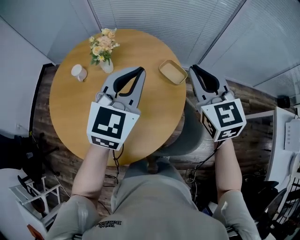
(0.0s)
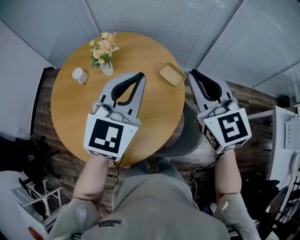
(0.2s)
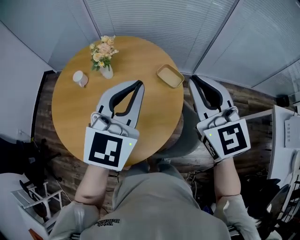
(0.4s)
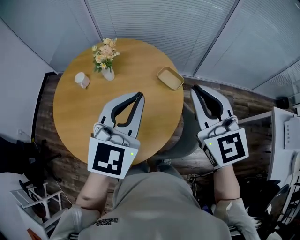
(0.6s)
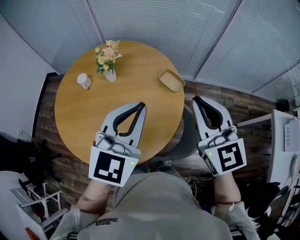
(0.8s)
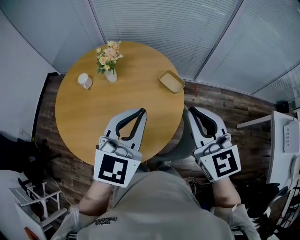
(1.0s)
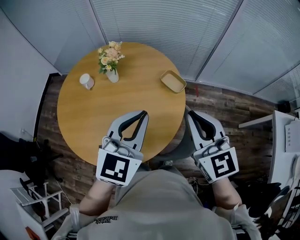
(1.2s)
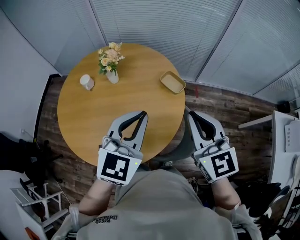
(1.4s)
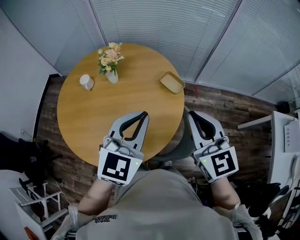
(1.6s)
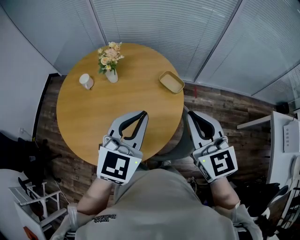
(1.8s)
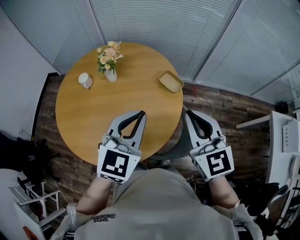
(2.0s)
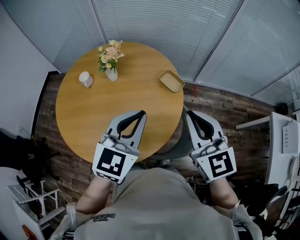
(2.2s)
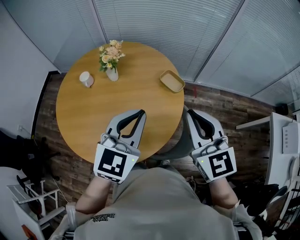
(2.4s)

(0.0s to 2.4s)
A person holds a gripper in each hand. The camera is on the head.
0.0s - 1.2s: The grippers both shift backward by approximately 15 cm.
1.2s - 2.4s: The grippers make only small movements.

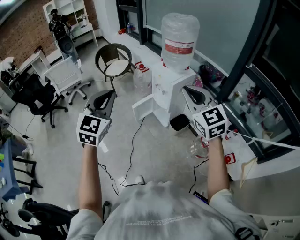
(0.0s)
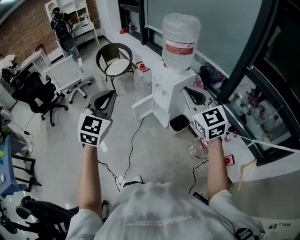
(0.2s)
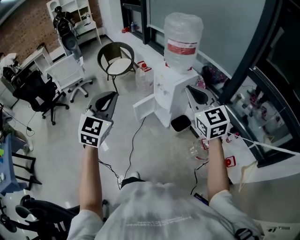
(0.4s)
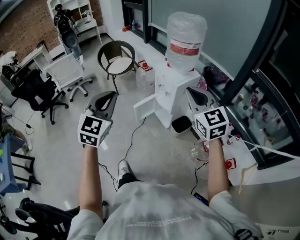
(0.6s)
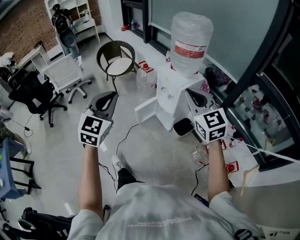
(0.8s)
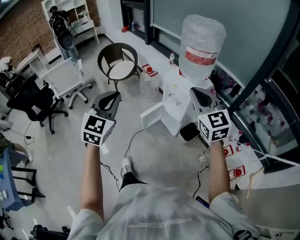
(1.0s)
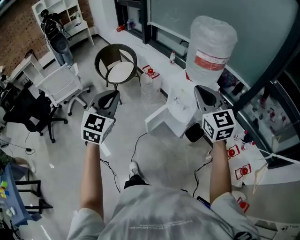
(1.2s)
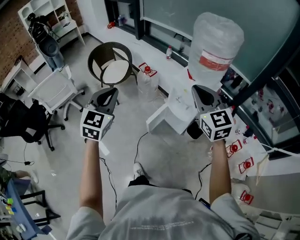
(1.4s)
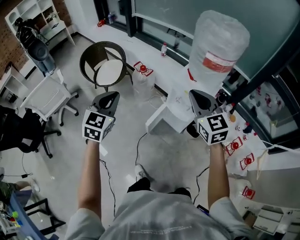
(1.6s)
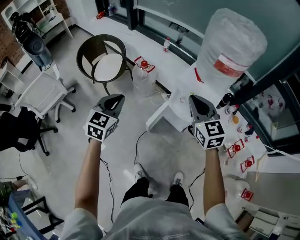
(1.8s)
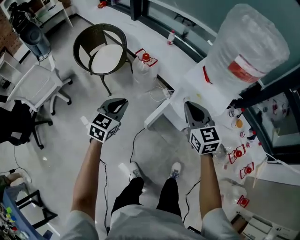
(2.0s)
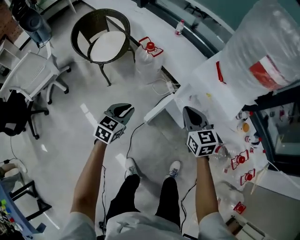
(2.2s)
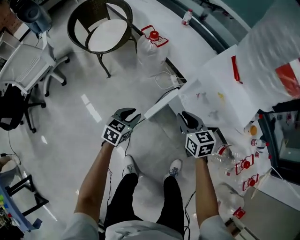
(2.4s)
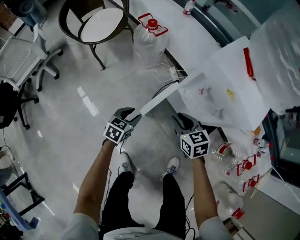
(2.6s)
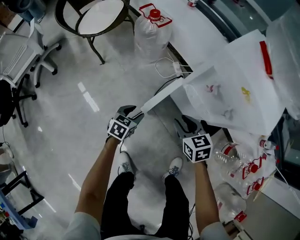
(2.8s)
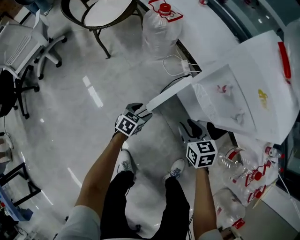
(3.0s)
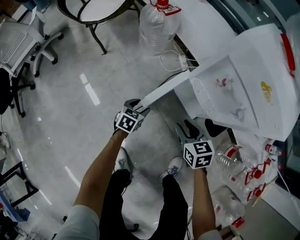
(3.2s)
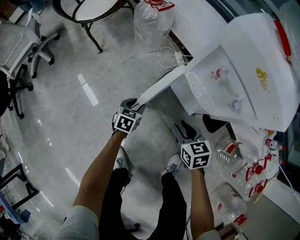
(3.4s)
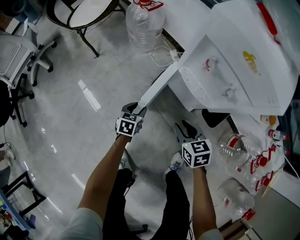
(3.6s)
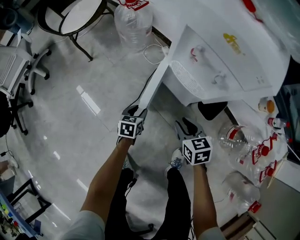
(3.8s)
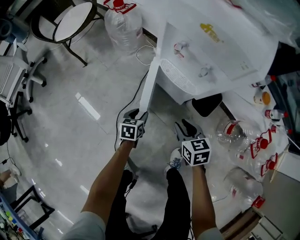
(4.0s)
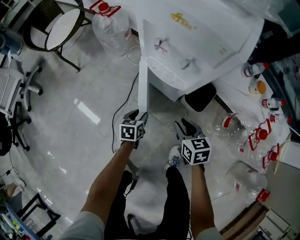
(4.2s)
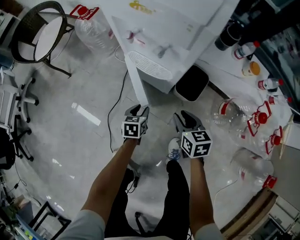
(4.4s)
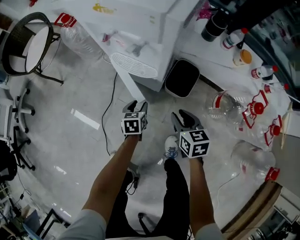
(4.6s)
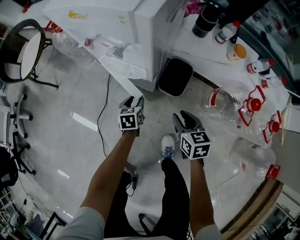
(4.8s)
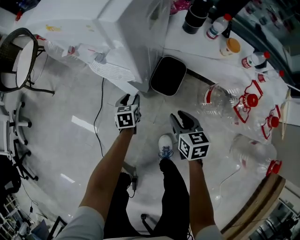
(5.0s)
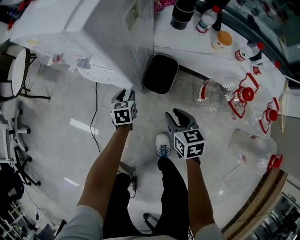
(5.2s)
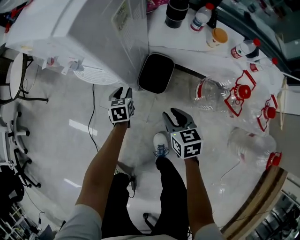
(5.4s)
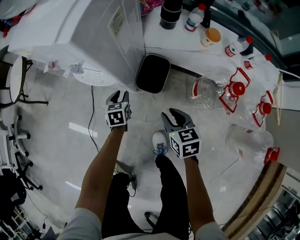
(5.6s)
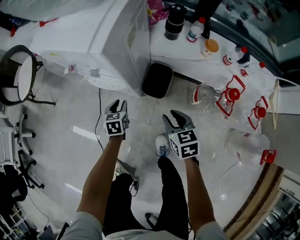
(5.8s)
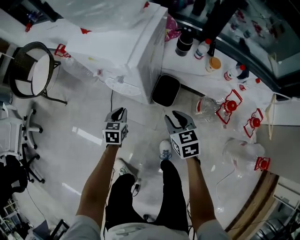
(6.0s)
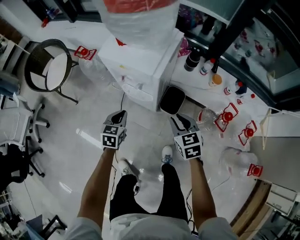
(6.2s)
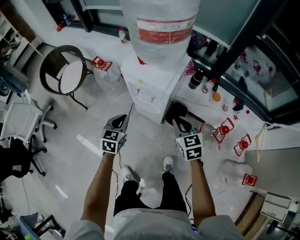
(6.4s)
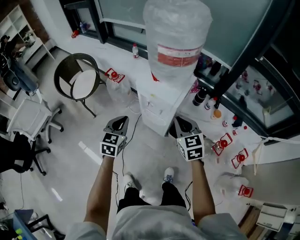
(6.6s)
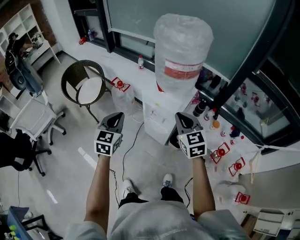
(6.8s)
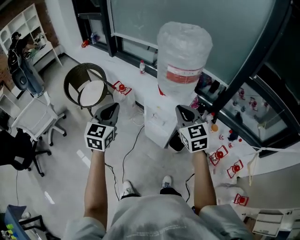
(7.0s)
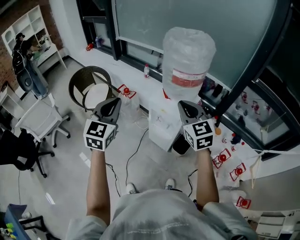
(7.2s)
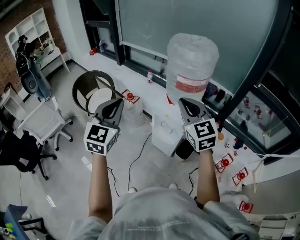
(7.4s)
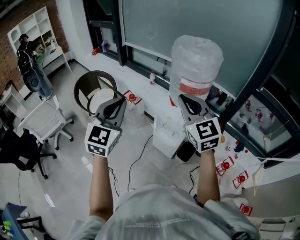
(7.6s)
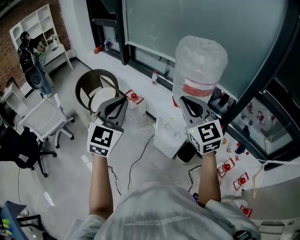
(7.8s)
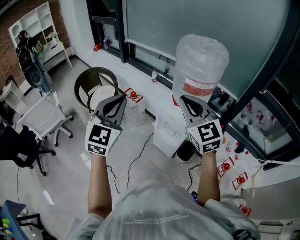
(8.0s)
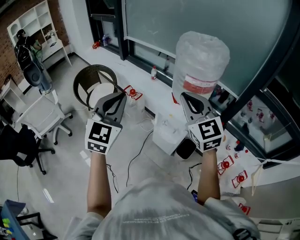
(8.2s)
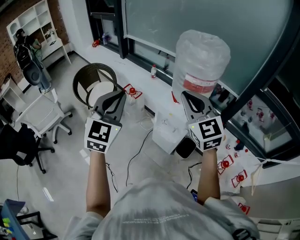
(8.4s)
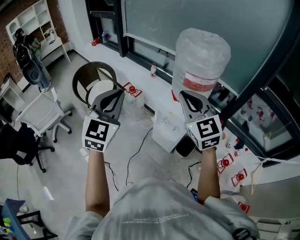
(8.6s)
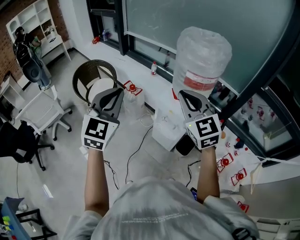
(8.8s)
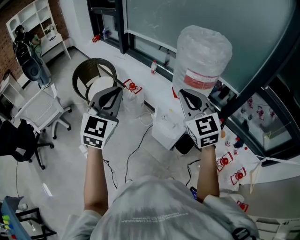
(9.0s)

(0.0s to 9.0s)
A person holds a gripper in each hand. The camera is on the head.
0.0s - 1.6s: Both grippers travel together forward and to the left, some 40 cm. The left gripper rotates approximately 20 degrees. Meanwhile the right gripper turns by some 20 degrees.
1.6s - 3.0s: Both grippers move downward, some 70 cm. The right gripper tips its fingers downward by some 30 degrees, and opens up. Meanwhile the left gripper changes its angle by approximately 40 degrees, and opens.
3.0s - 4.4s: The left gripper heads to the right, covering about 20 cm, and closes. The right gripper goes some 25 cm to the right and backward, and changes its angle by about 30 degrees.
4.4s - 6.0s: The right gripper heads upward and to the right, covering roughly 20 cm. The left gripper goes about 20 cm upward, and closes up.
6.0s - 7.6s: The right gripper moves upward and to the left, approximately 70 cm, points its fingers about 40 degrees further upward, and closes up; the left gripper heads upward, covering some 70 cm, and tips its fingers upward by some 40 degrees.
7.6s - 9.0s: The grippers make only small movements.

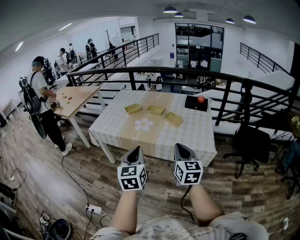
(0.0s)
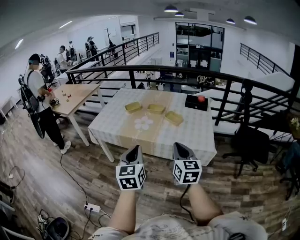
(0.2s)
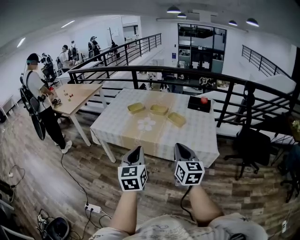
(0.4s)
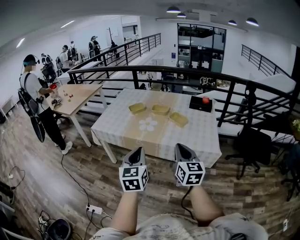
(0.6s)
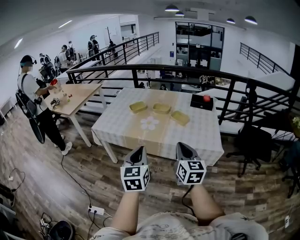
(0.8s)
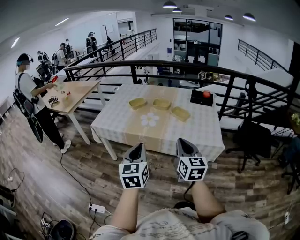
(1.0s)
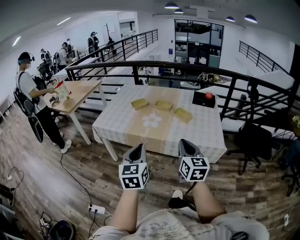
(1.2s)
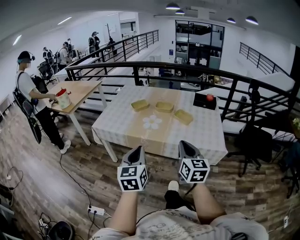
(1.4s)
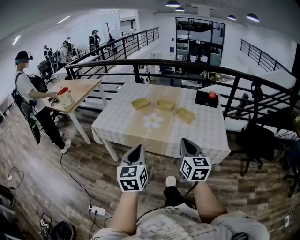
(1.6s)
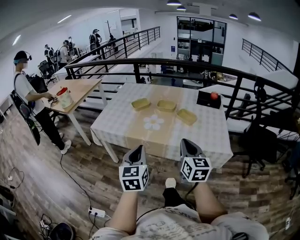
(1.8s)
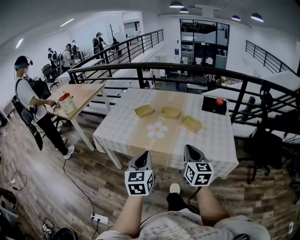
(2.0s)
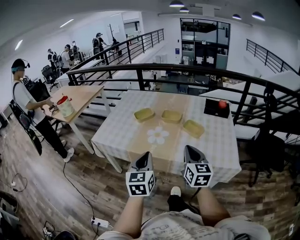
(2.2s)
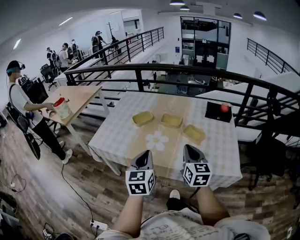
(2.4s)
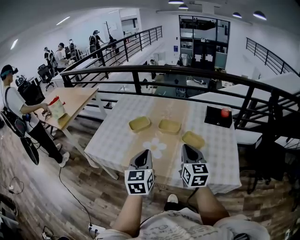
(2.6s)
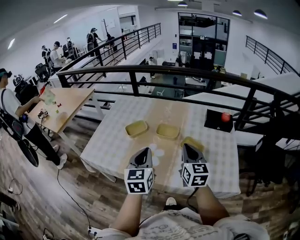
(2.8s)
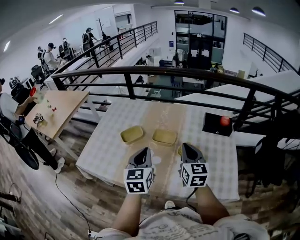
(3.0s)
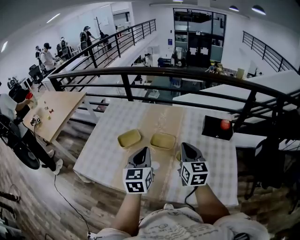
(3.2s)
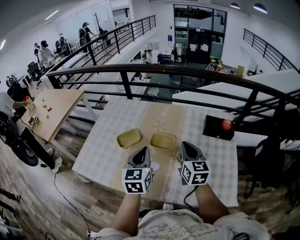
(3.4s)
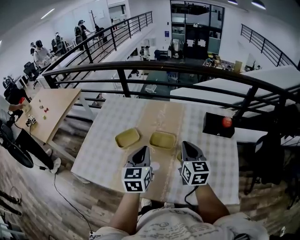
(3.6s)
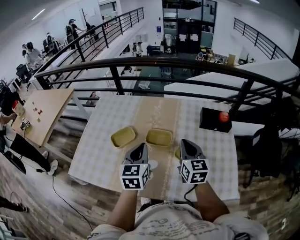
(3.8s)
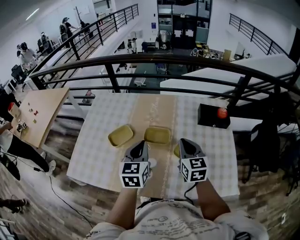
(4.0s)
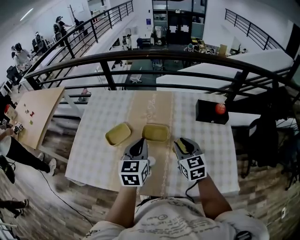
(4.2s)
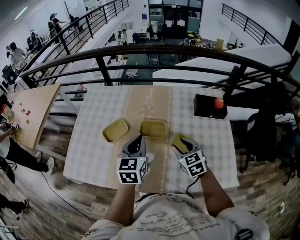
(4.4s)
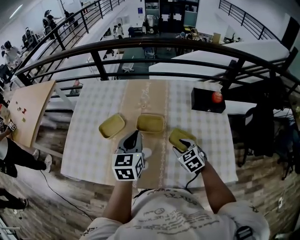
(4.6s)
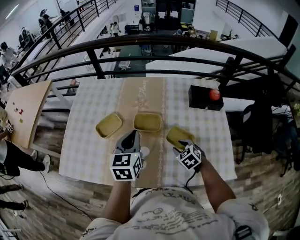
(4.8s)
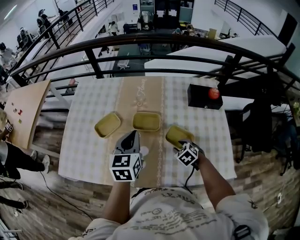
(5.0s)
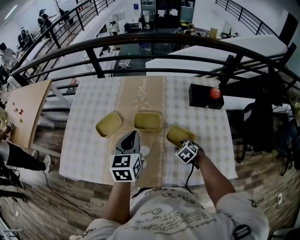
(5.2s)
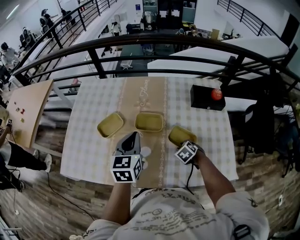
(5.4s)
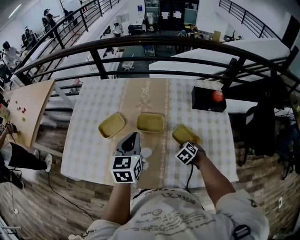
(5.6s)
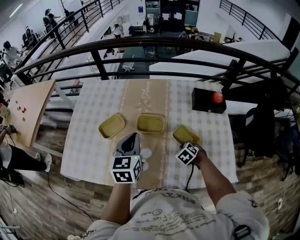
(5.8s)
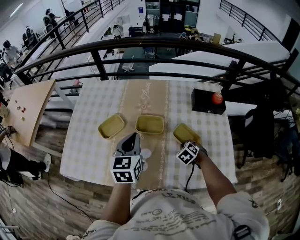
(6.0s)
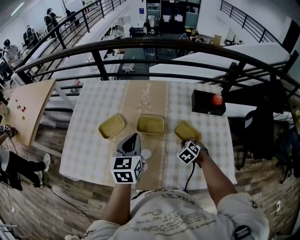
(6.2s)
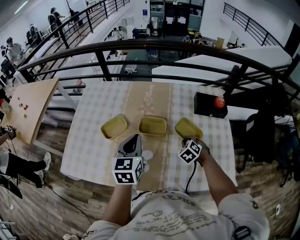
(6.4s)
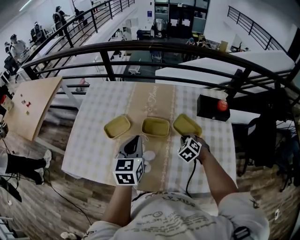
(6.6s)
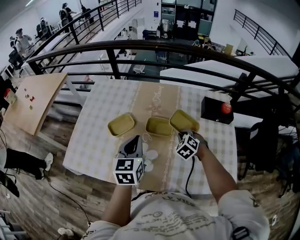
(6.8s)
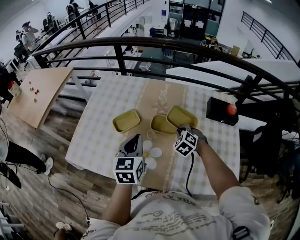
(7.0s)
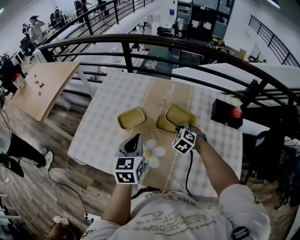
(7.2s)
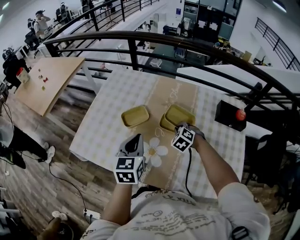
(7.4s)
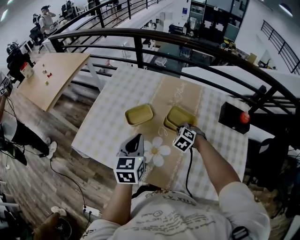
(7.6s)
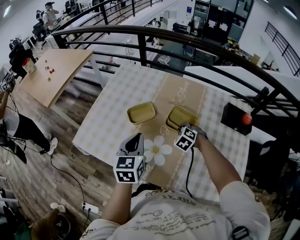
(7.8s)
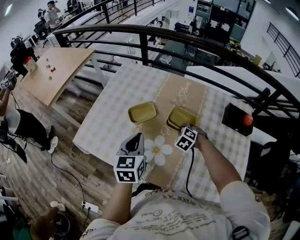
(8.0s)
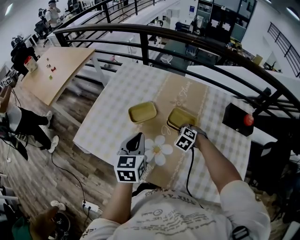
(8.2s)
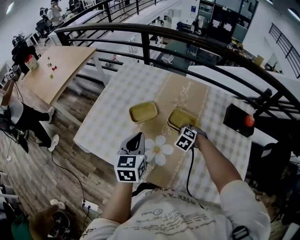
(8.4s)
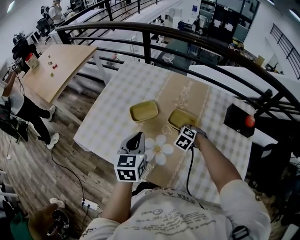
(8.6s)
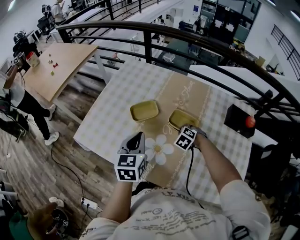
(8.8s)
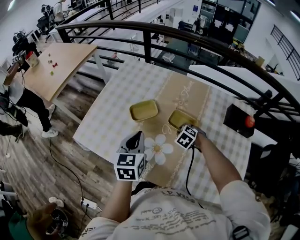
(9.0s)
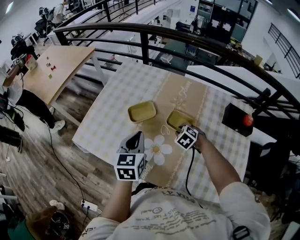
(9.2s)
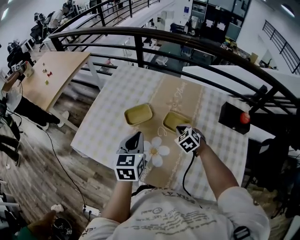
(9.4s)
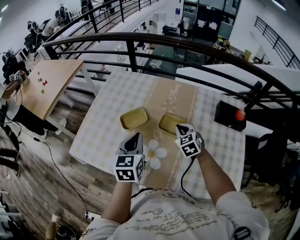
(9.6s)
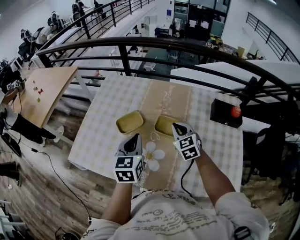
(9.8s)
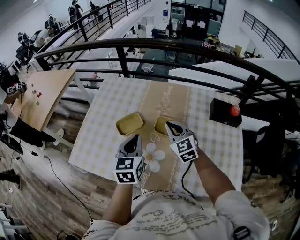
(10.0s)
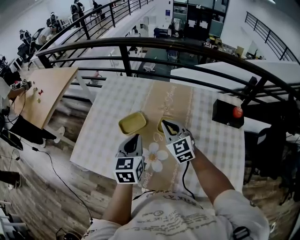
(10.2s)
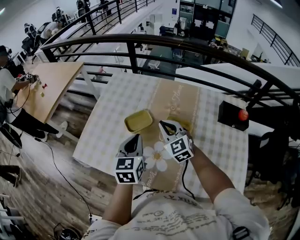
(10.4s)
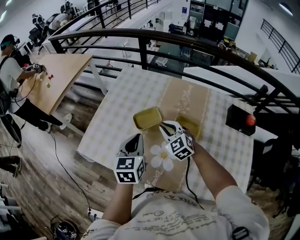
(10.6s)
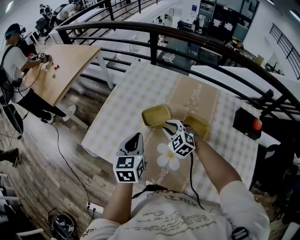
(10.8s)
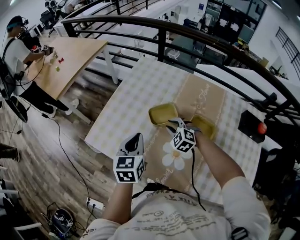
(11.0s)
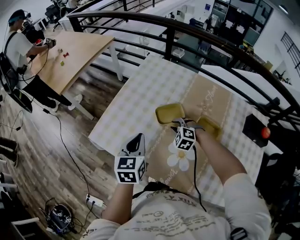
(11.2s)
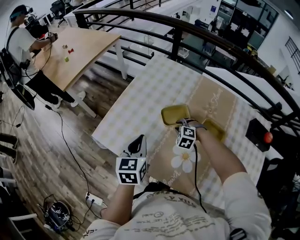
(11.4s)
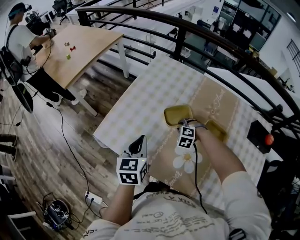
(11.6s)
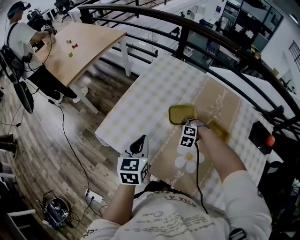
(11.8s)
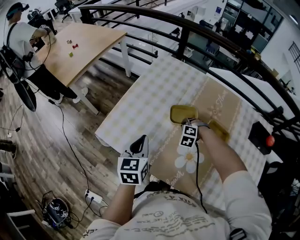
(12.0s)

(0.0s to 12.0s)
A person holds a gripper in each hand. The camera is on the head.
0.0s - 1.6s: The grippers both shift to the left and forward by approximately 10 cm.
1.6s - 3.0s: The pair of grippers is taken forward, some 50 cm.
3.0s - 4.4s: The left gripper shifts some 20 cm forward. The right gripper shifts some 20 cm downward and forward, changes its angle by roughly 30 degrees, and opens.
4.4s - 6.0s: The right gripper travels downward by some 15 cm, angles its fingers downward, by some 30 degrees, and closes.
6.0s - 7.6s: The left gripper shifts about 10 cm to the left. The right gripper travels to the left and forward by about 20 cm, and swivels about 30 degrees.
7.6s - 9.0s: The grippers stay close to where they were, moving slightly.
9.0s - 10.4s: The right gripper shifts roughly 20 cm upward and to the left, angles its fingers upward, by approximately 50 degrees, and closes.
10.4s - 12.0s: The right gripper travels downward and to the left by some 25 cm, tips its fingers downward by some 50 degrees, and opens, then closes once more. The left gripper moves to the left, roughly 20 cm.
